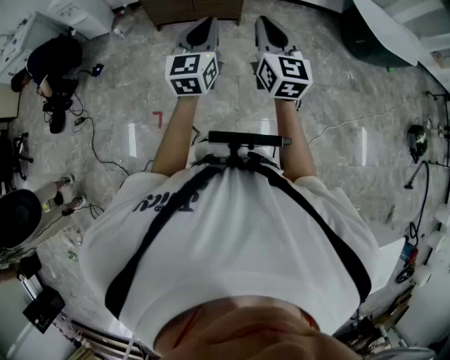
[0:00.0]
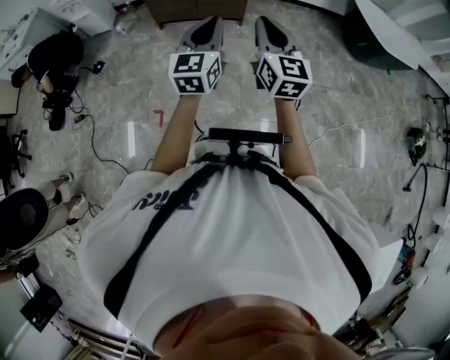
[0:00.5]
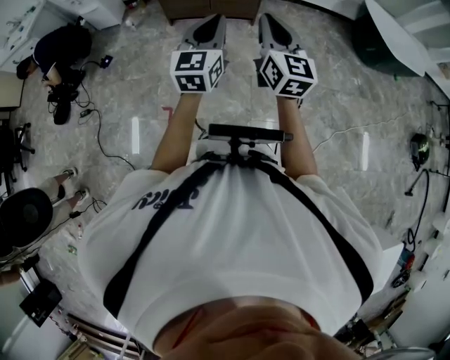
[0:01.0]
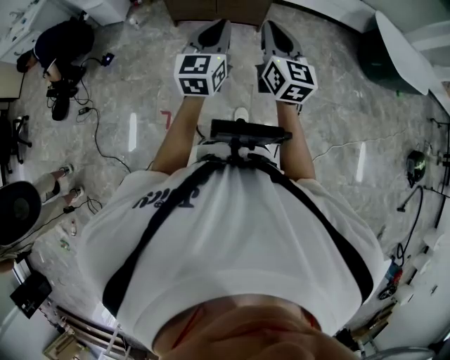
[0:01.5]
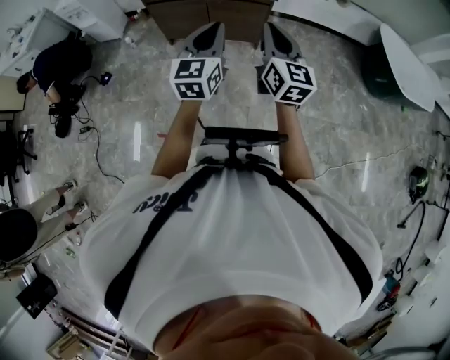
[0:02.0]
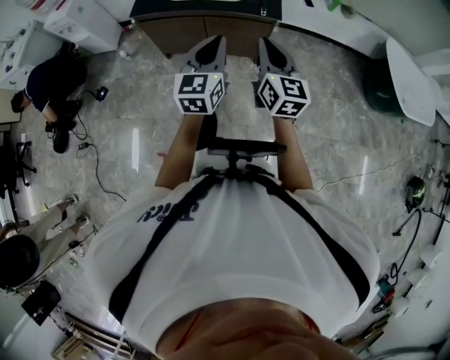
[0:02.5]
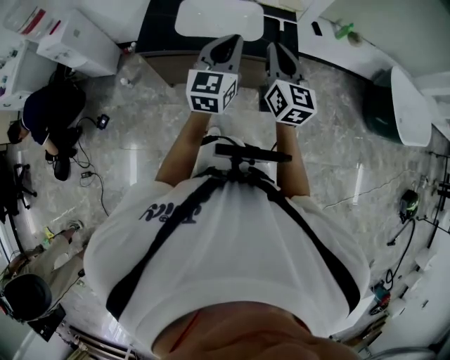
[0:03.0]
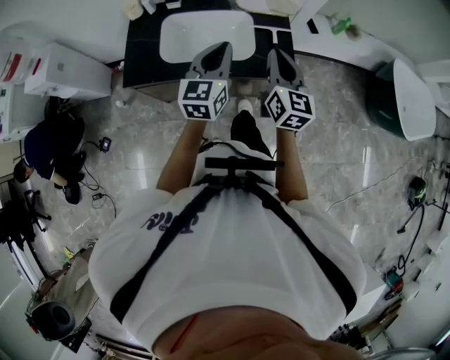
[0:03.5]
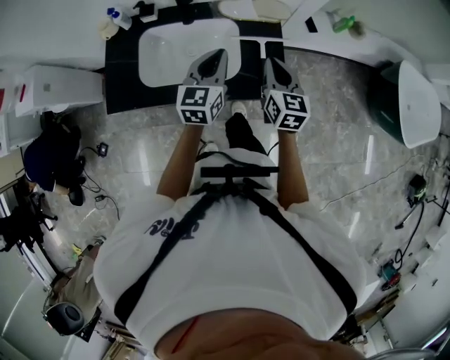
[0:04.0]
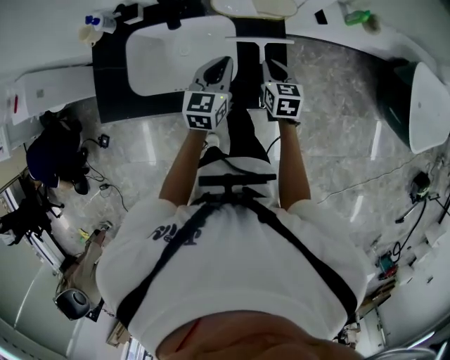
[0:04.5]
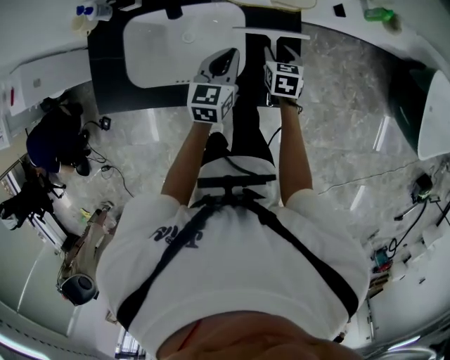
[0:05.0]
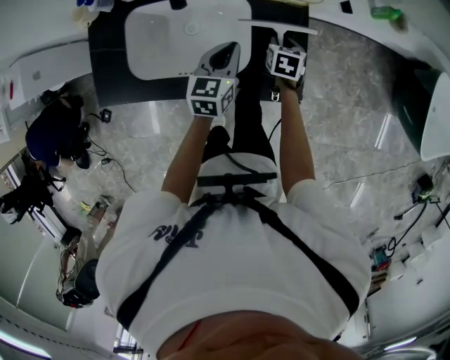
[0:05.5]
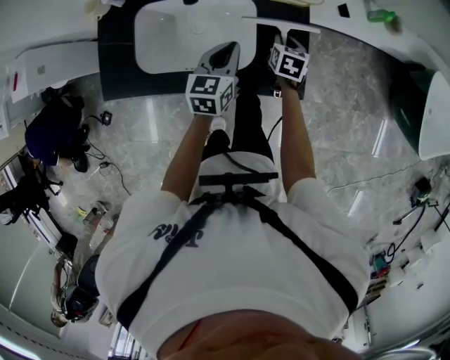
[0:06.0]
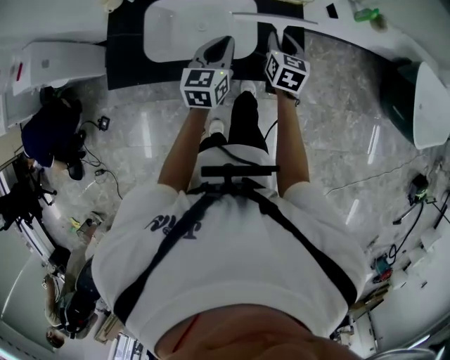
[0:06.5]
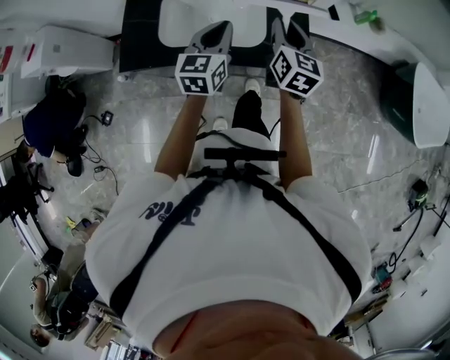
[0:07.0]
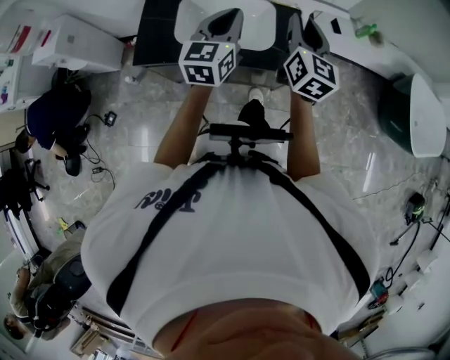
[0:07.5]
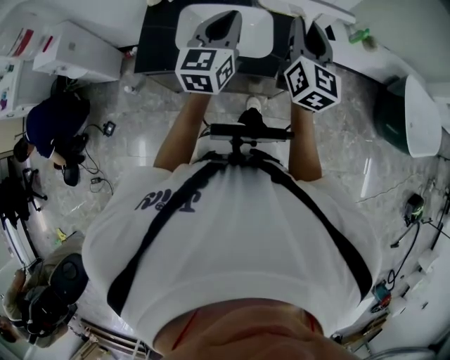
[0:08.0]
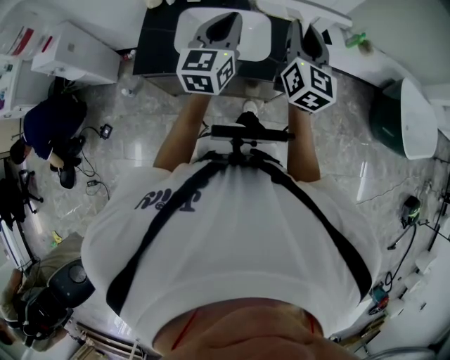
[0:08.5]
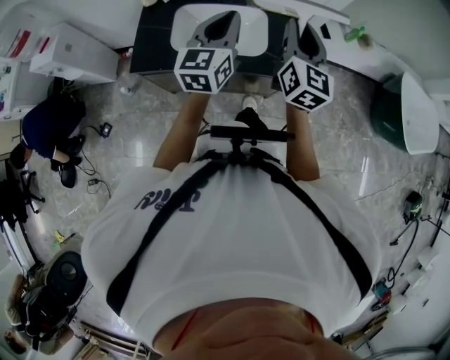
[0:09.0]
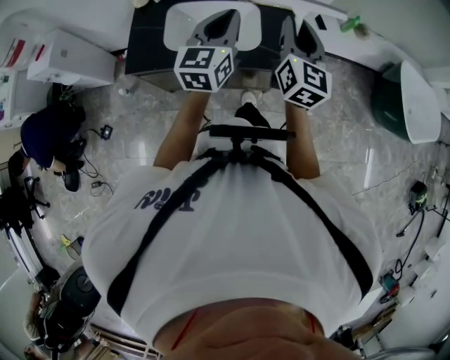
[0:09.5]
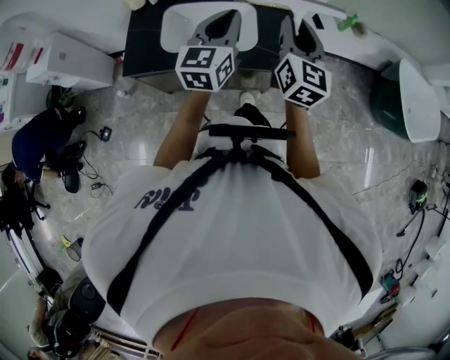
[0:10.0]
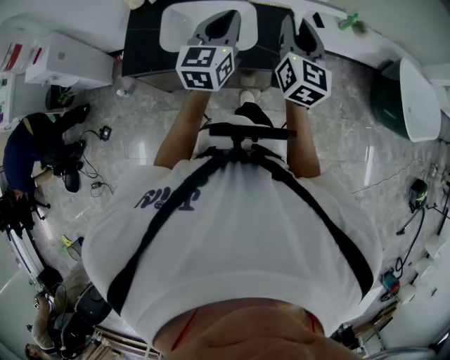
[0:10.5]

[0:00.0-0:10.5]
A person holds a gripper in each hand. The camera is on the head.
0:00.0 to 0:02.0: The grippers both shift forward by some 25 cm.
0:02.0 to 0:04.0: The two grippers travel together, forward, some 60 cm. The right gripper turns by some 20 degrees.
0:04.0 to 0:06.5: The two grippers go approximately 10 cm downward.
0:06.5 to 0:08.5: The grippers both shift upward and backward by roughly 25 cm. The right gripper points its fingers approximately 40 degrees further upward; the left gripper turns by some 20 degrees.
0:08.5 to 0:10.5: Both grippers travel together to the right, some 5 cm.

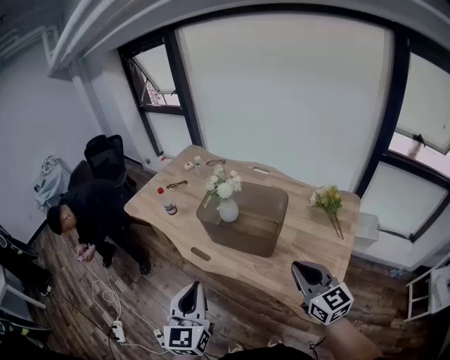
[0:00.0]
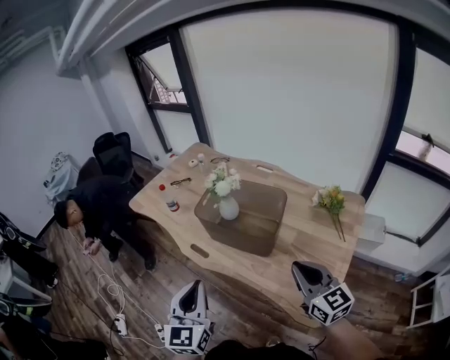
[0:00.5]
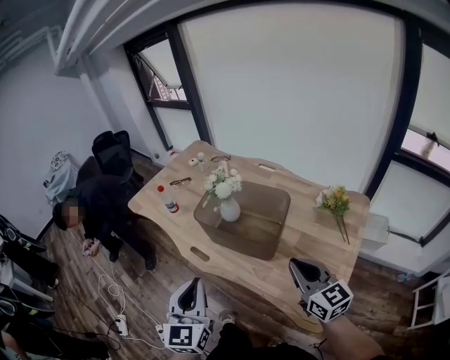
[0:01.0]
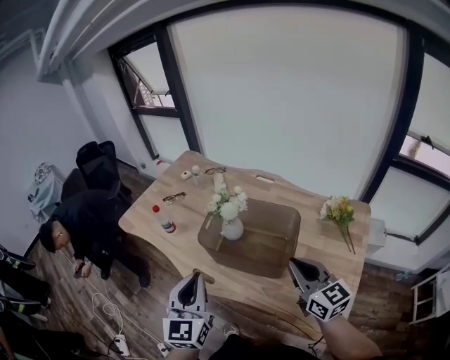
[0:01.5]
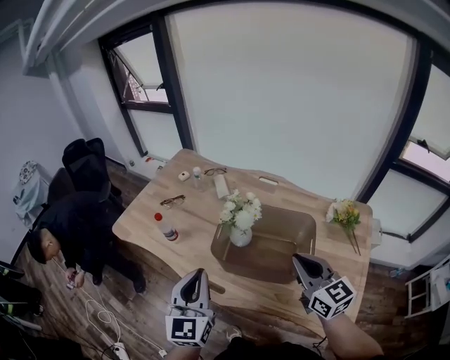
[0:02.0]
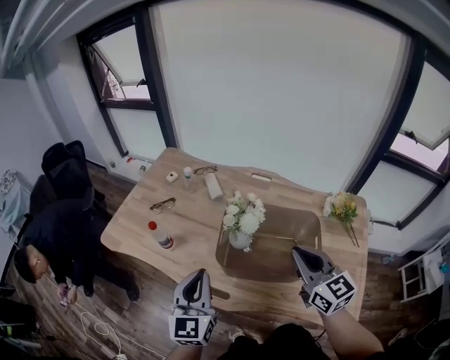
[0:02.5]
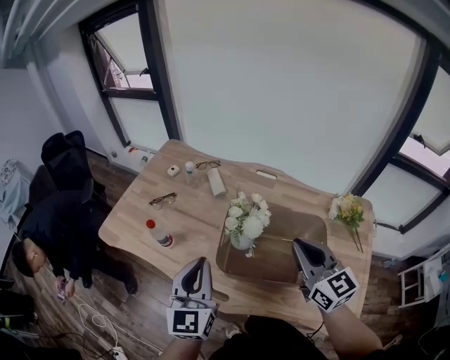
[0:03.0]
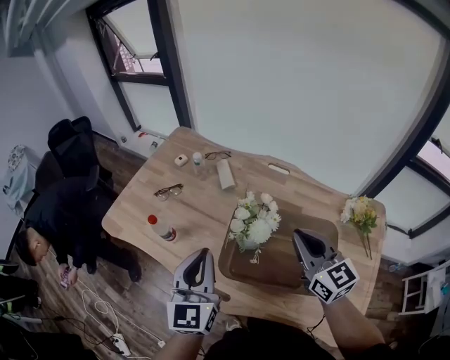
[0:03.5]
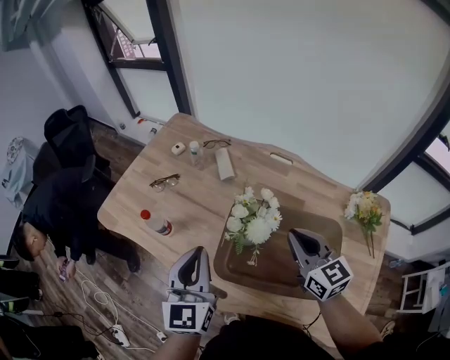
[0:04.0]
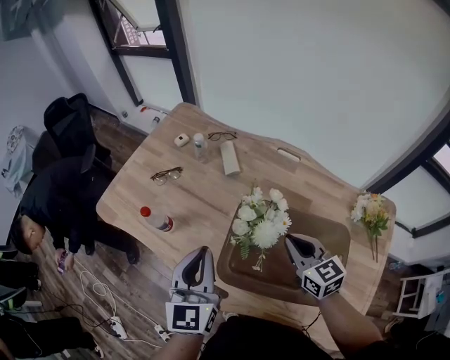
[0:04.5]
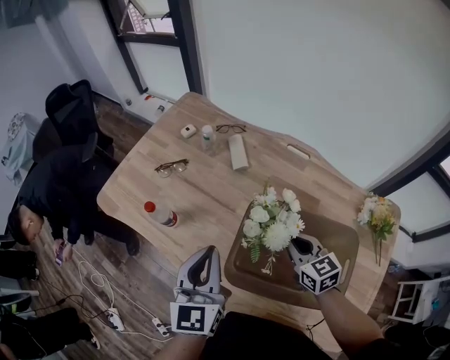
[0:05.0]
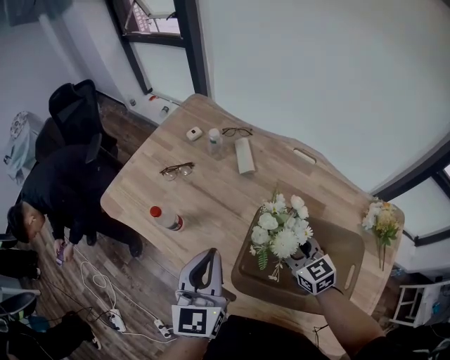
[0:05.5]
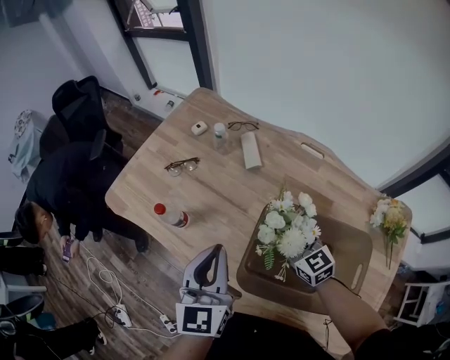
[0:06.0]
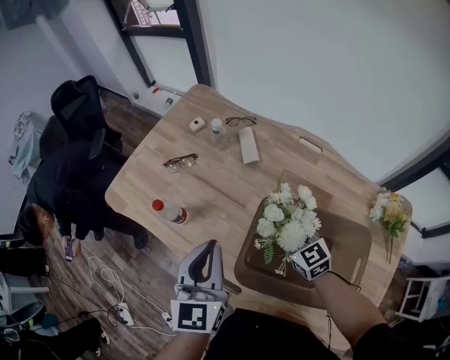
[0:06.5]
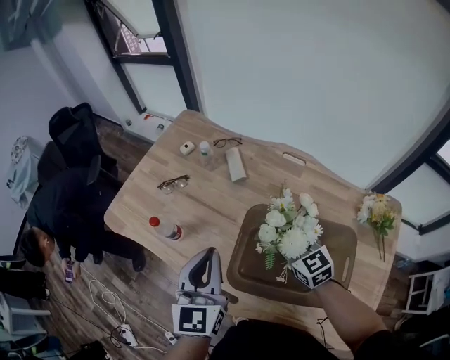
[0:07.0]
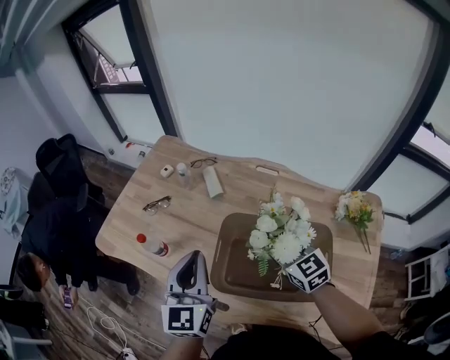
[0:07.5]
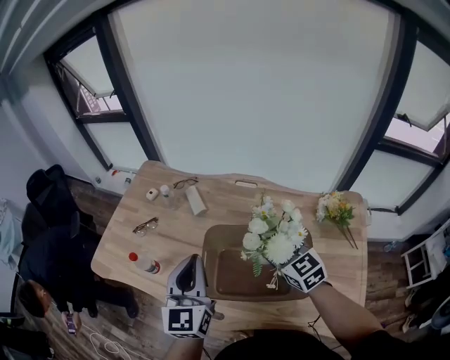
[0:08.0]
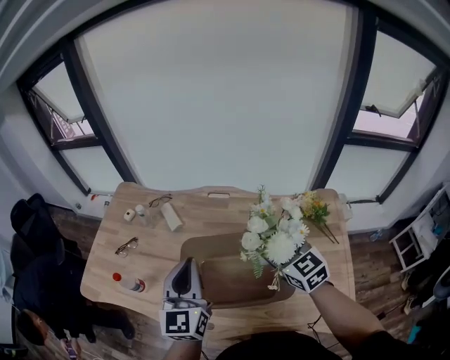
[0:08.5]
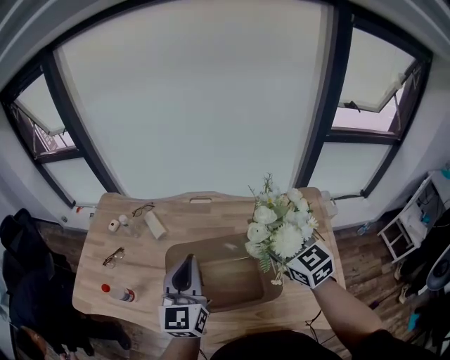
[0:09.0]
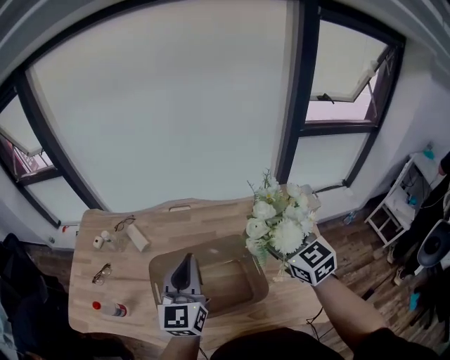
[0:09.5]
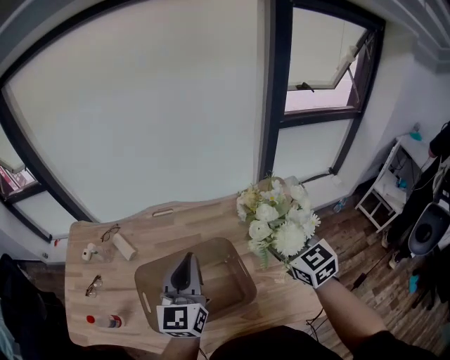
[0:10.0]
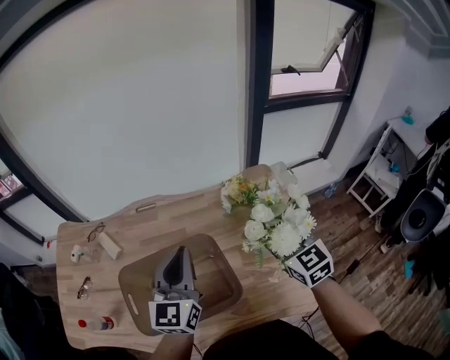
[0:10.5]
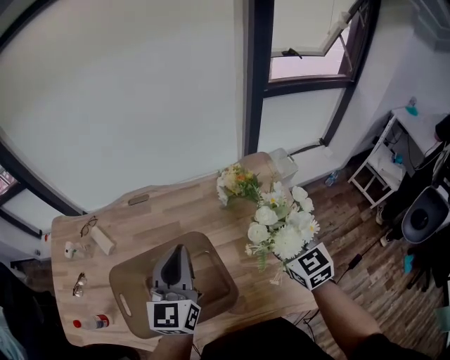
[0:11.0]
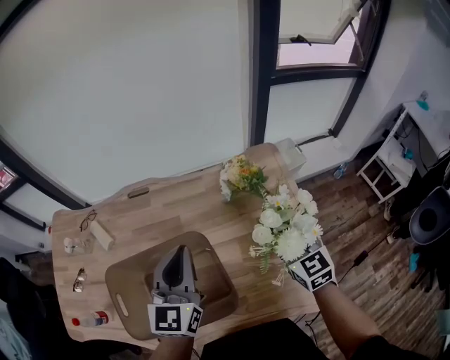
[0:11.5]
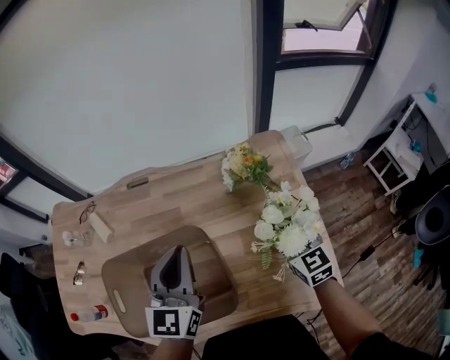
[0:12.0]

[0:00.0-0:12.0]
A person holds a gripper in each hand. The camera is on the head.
0:00.0 to 0:02.0: Both grippers move forward, roughly 20 cm.
0:02.0 to 0:04.0: The right gripper moves forward and downward, about 20 cm. Meanwhile the left gripper goes approximately 15 cm forward.
0:04.0 to 0:06.0: The left gripper moves roughly 5 cm; the right gripper shifts roughly 20 cm downward, forward and to the left, and opens.
0:06.0 to 0:08.0: The left gripper heads upward and to the right, covering approximately 10 cm; the right gripper moves upward, to the right and backward, some 20 cm.
0:08.0 to 0:10.0: The left gripper moves approximately 20 cm, and swivels approximately 30 degrees; the right gripper shifts by about 25 cm, and turns by about 30 degrees.
0:10.0 to 0:12.0: The right gripper heads downward and to the right, covering roughly 20 cm; the left gripper moves downward and to the right, approximately 10 cm.

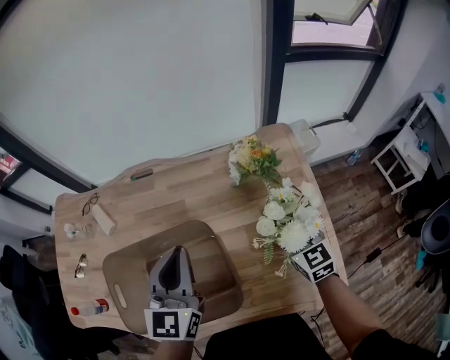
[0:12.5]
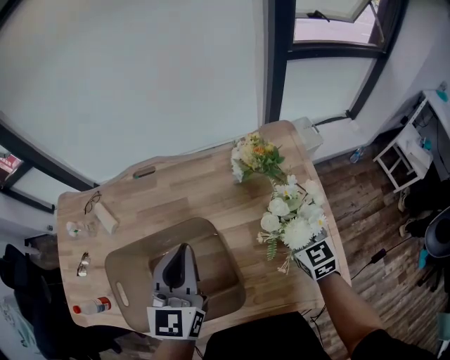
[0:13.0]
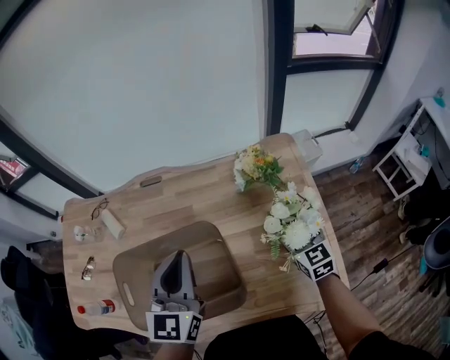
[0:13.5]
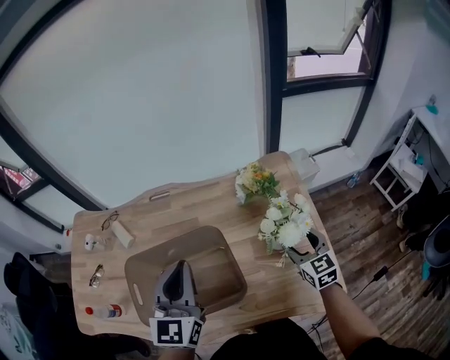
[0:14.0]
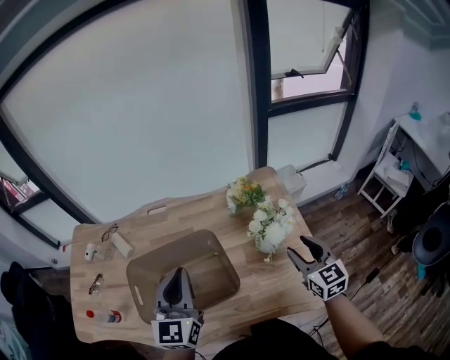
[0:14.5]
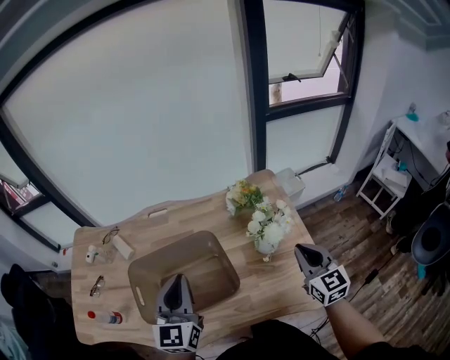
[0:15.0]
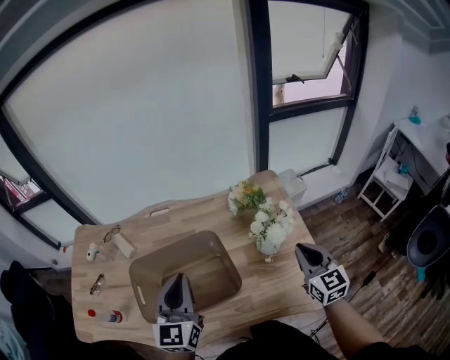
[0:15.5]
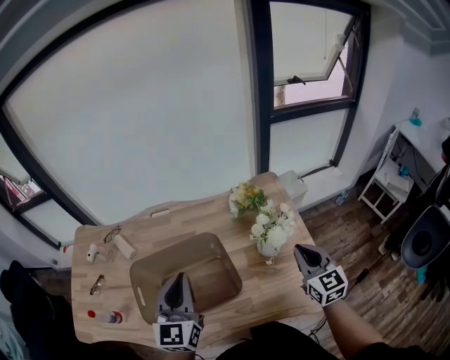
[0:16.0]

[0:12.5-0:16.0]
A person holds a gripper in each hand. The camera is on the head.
0:12.5 to 0:14.5: The left gripper heads backward and upward, covering roughly 10 cm. The right gripper goes approximately 15 cm upward and backward.
0:14.5 to 0:16.0: The right gripper closes its fingers.

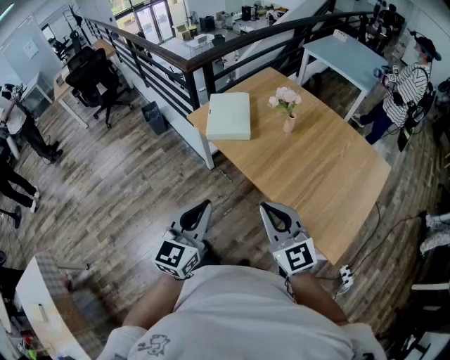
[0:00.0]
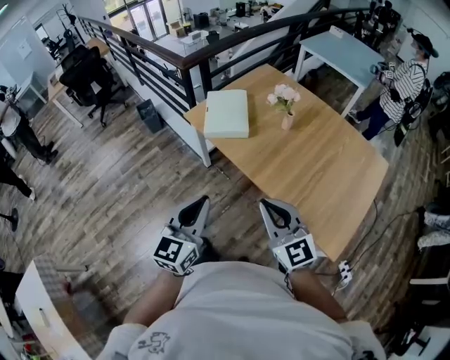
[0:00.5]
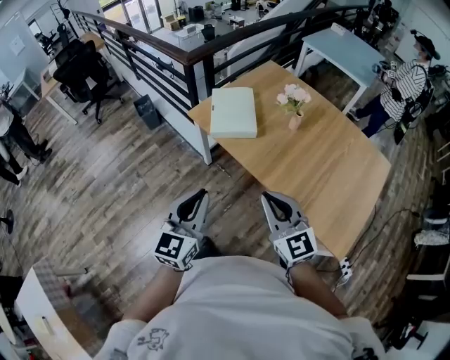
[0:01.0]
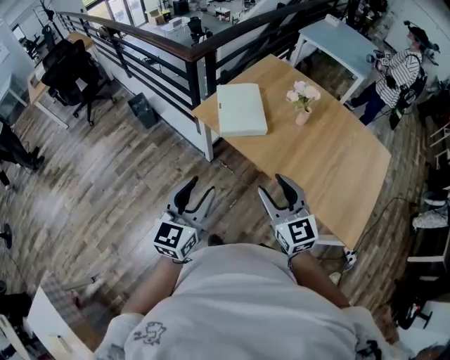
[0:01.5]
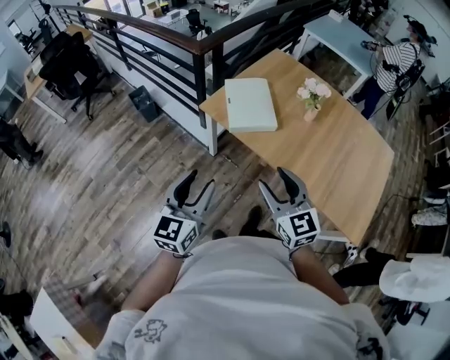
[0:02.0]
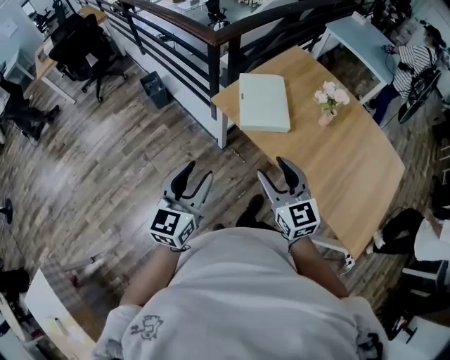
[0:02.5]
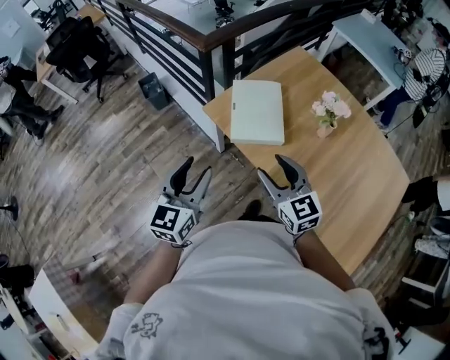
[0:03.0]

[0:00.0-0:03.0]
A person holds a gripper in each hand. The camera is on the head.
0:00.0 to 0:01.5: The grippers both shift to the left and forward by some 20 cm. The right gripper opens its fingers. Meanwhile the left gripper opens up.
0:01.5 to 0:03.0: The grippers both shift forward by approximately 15 cm.
